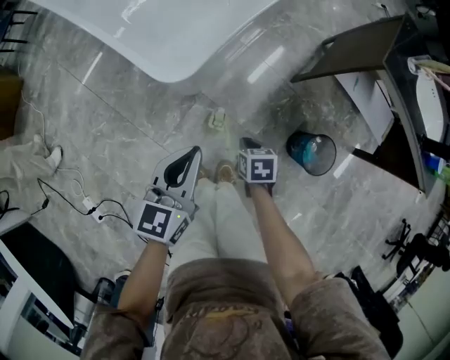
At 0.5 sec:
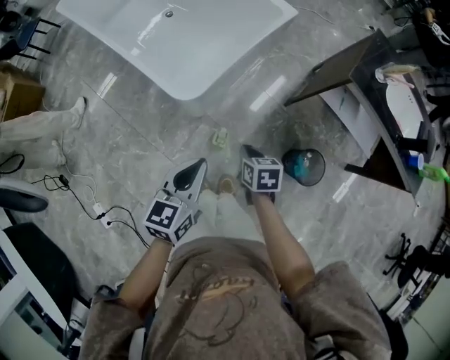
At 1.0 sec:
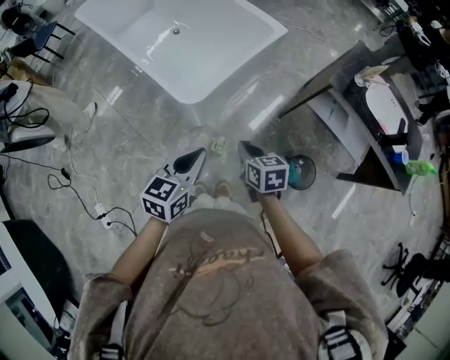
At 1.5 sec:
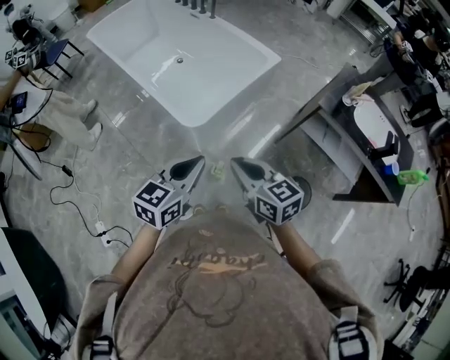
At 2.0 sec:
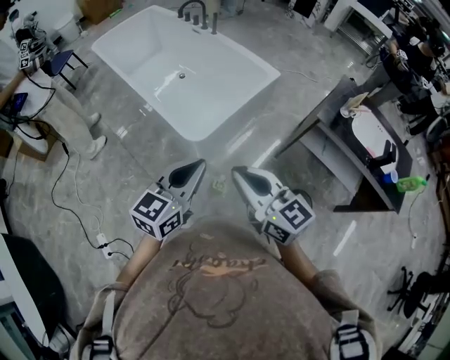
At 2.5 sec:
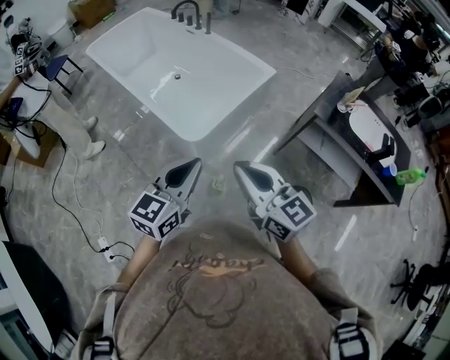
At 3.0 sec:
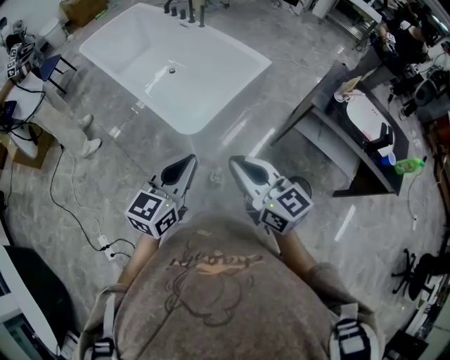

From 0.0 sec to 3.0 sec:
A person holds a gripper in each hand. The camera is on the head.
From 0.0 sec to 1.5 sec: The left gripper heads upward, covering roughly 25 cm; the right gripper is displaced upward by about 40 cm, and tilts its fingers roughly 50 degrees upward.
From 1.5 sec to 3.0 sec: The left gripper moves some 5 cm. Meanwhile the right gripper heads upward, covering about 10 cm.

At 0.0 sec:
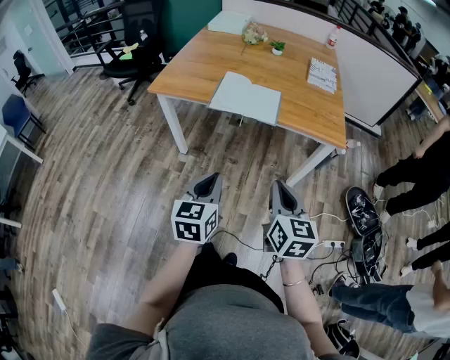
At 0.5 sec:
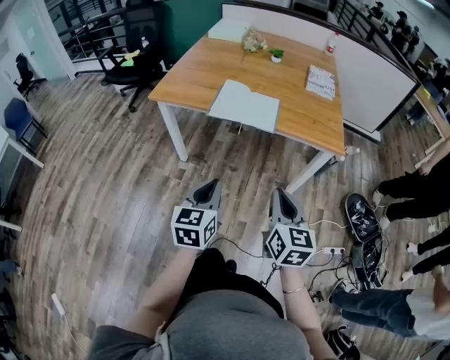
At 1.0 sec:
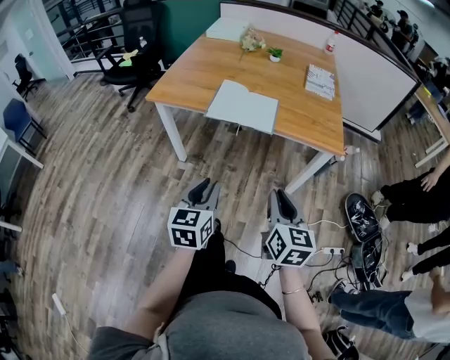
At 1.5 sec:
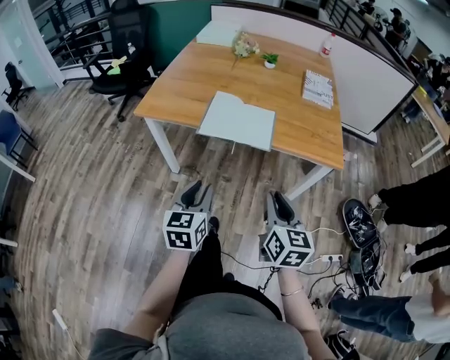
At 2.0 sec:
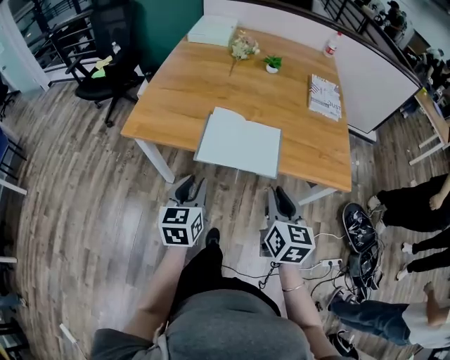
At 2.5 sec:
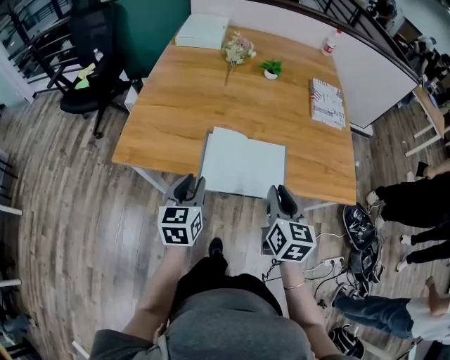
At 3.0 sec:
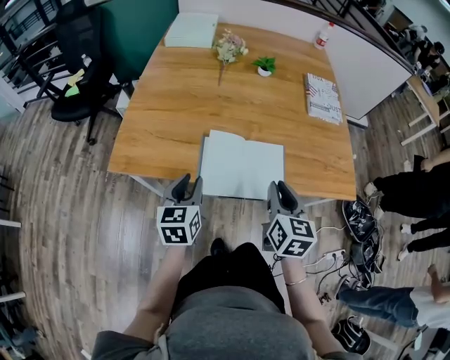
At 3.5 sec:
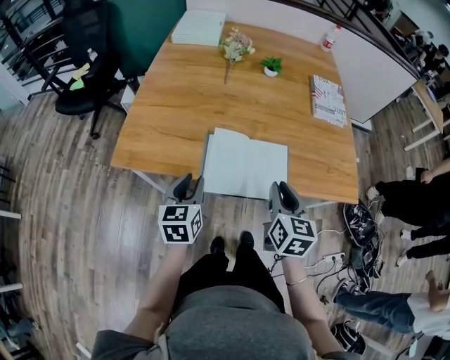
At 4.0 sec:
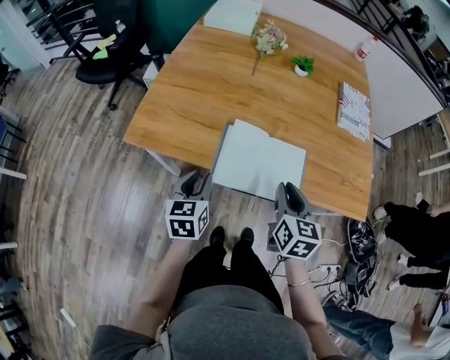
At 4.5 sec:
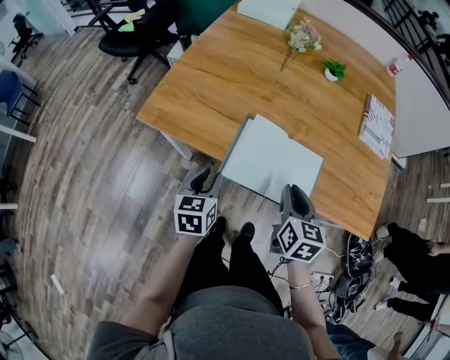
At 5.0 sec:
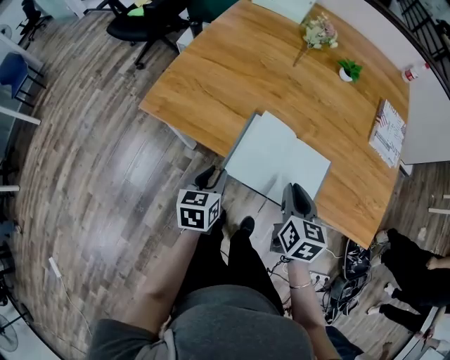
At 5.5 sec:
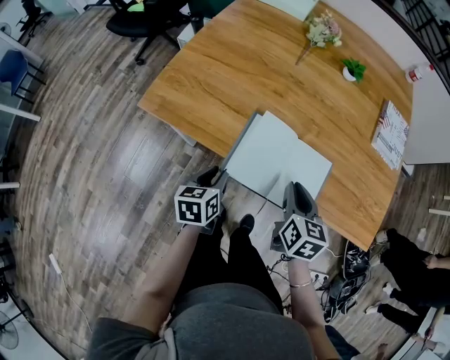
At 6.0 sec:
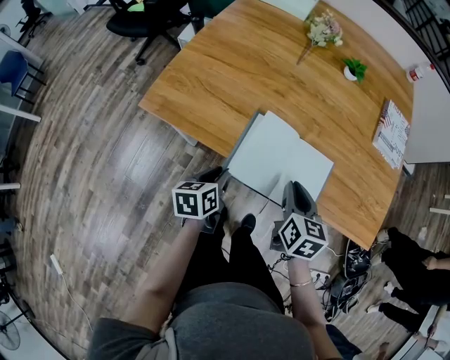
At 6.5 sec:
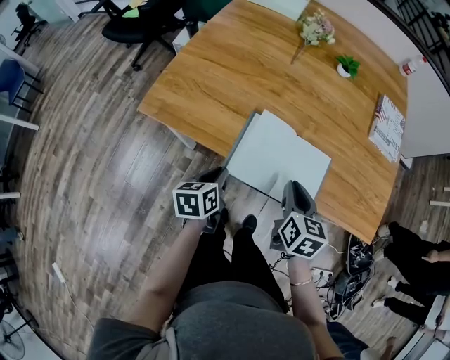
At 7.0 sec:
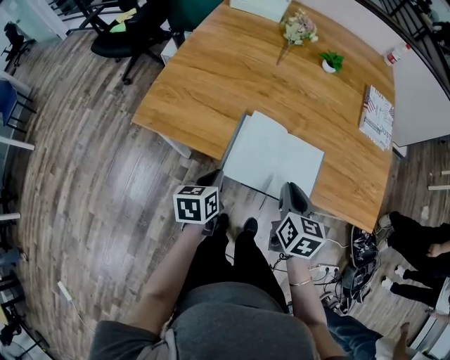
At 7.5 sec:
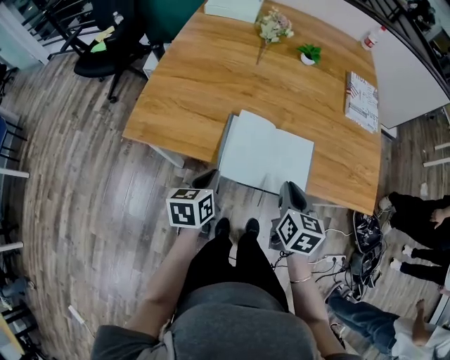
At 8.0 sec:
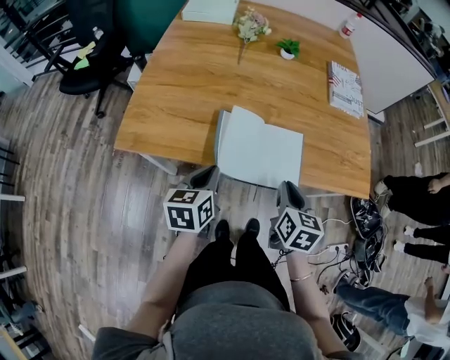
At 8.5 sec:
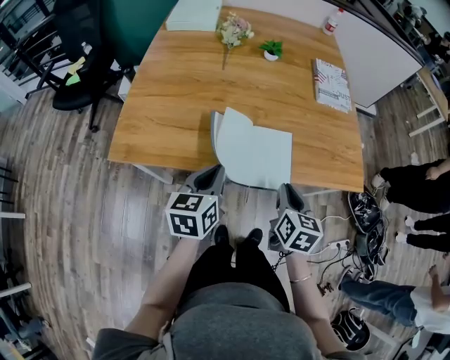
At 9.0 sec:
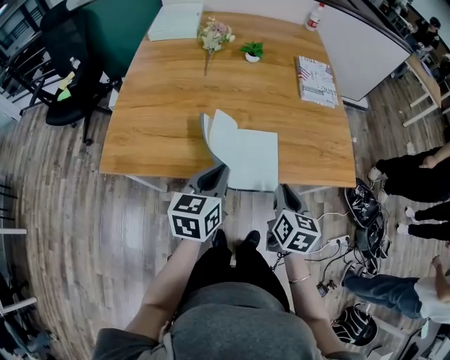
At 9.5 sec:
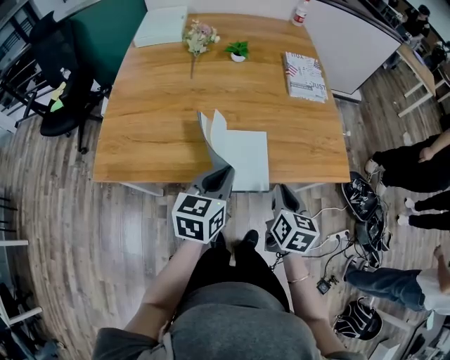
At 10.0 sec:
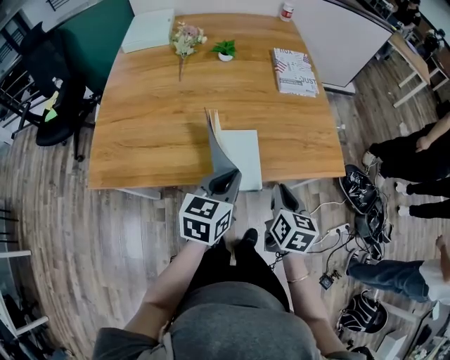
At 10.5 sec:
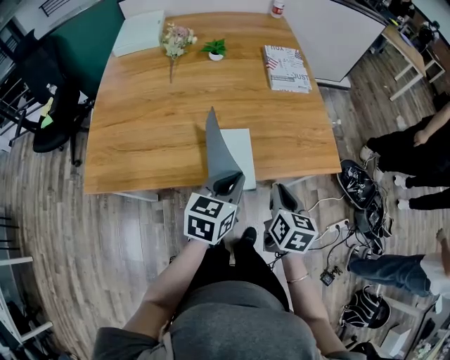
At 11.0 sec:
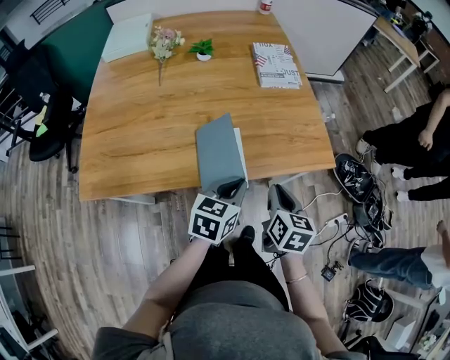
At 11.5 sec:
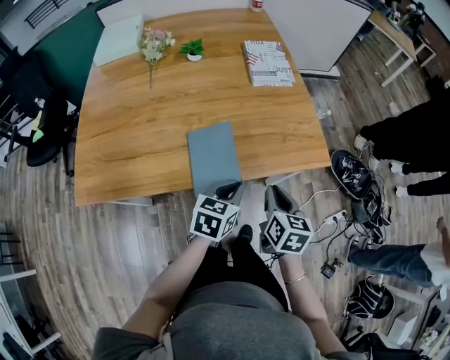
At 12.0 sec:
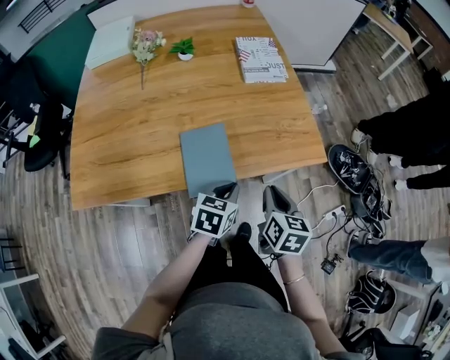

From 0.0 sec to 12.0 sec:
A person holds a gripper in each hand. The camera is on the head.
From 0.0 sec to 2.0 sec: Both grippers travel together forward, some 25 cm.
From 2.0 sec to 4.0 sec: The right gripper is displaced forward by some 15 cm, while the left gripper moves forward, to the left and downward, some 15 cm.
From 4.0 sec to 6.0 sec: The right gripper moves downward, some 5 cm, while the left gripper is displaced downward by some 10 cm, and swivels approximately 30 degrees.
From 6.0 sec to 8.0 sec: The left gripper goes approximately 10 cm upward, and turns by about 20 degrees; the right gripper shifts about 5 cm backward.
From 8.0 sec to 10.0 sec: The left gripper is displaced to the right by about 20 cm, and rotates roughly 30 degrees; the right gripper goes about 10 cm to the right.
From 10.0 sec to 12.0 sec: The right gripper is displaced to the right by roughly 5 cm, while the left gripper heads downward and to the right, covering approximately 15 cm, and swivels approximately 20 degrees.

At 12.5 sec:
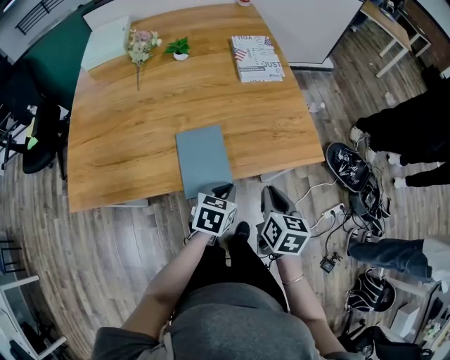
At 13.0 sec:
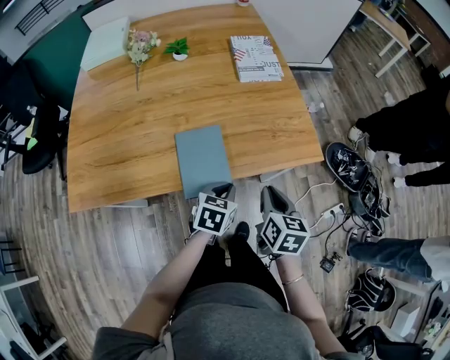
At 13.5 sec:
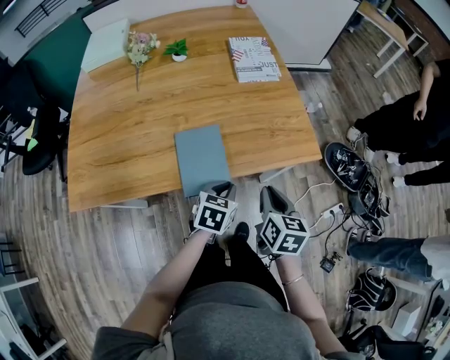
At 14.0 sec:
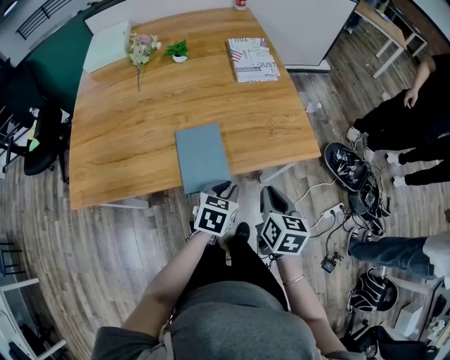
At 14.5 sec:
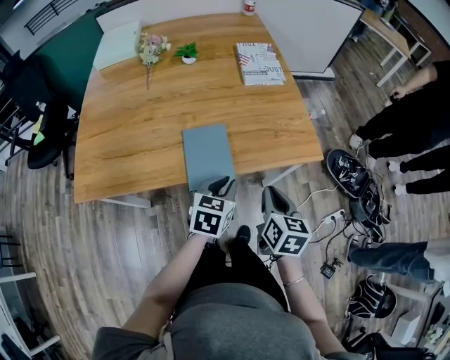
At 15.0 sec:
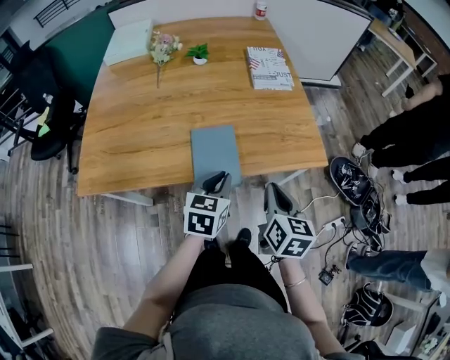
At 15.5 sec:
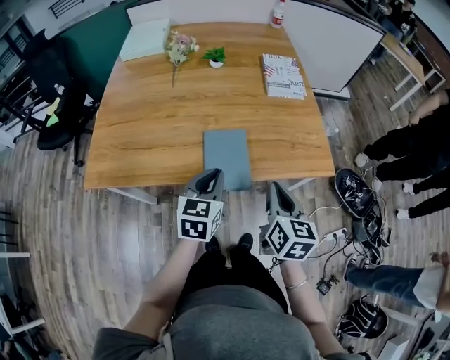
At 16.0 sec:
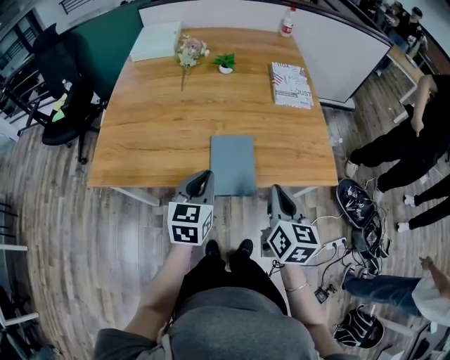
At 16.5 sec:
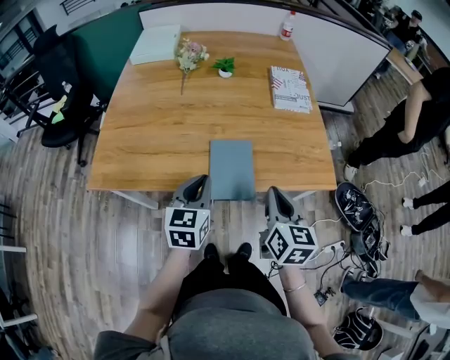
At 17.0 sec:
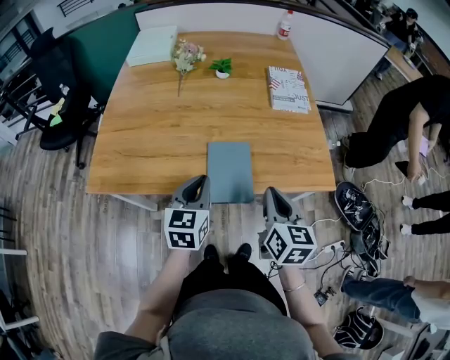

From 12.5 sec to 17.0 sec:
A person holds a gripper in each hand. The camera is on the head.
From 12.5 sec to 14.5 sec: The left gripper is displaced upward by roughly 5 cm.
From 14.5 sec to 17.0 sec: The right gripper heads upward and to the left, covering approximately 10 cm. Meanwhile the left gripper is displaced to the left and upward by some 15 cm, and changes its angle by approximately 30 degrees.

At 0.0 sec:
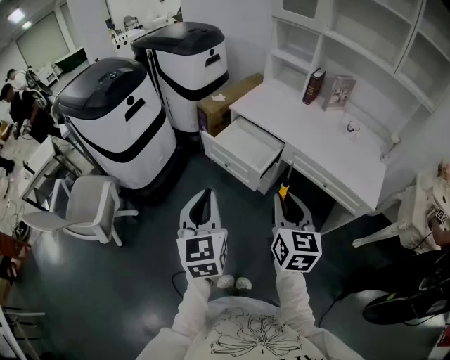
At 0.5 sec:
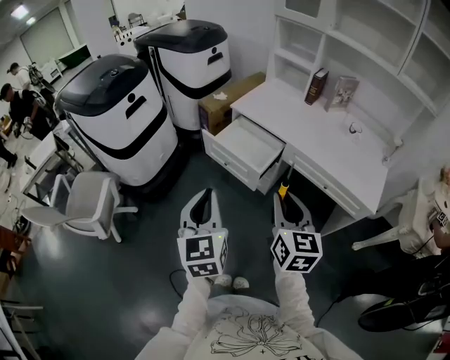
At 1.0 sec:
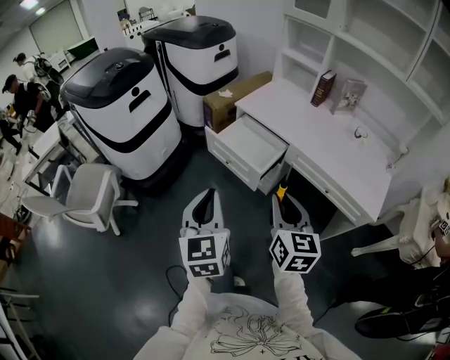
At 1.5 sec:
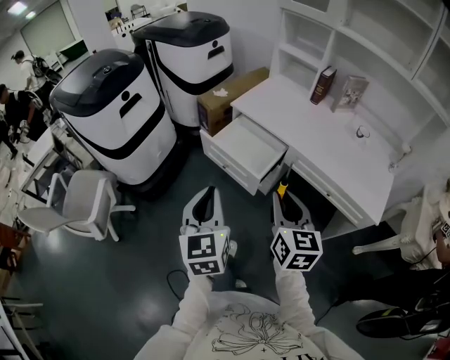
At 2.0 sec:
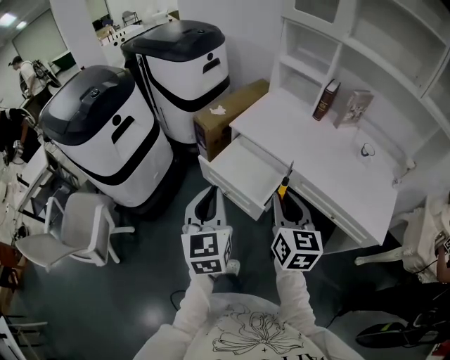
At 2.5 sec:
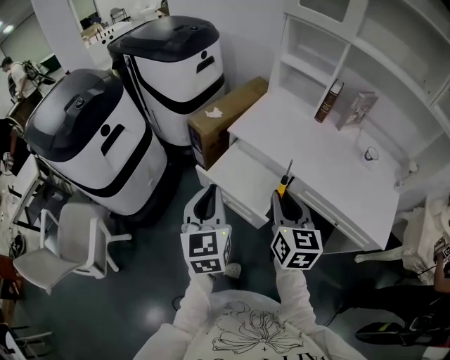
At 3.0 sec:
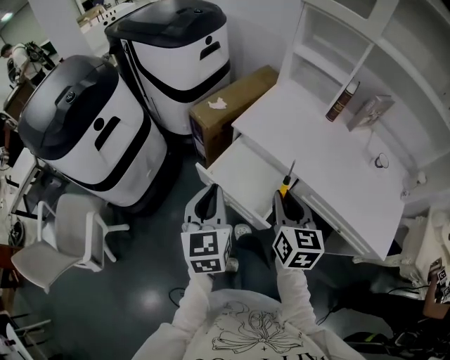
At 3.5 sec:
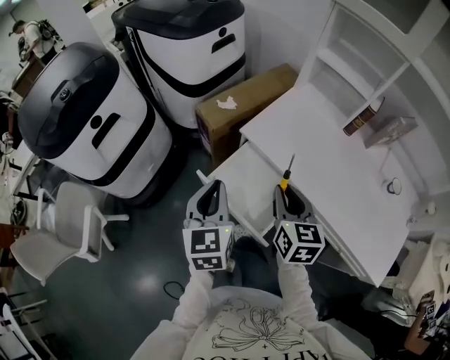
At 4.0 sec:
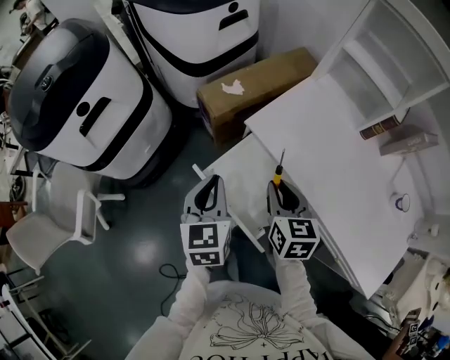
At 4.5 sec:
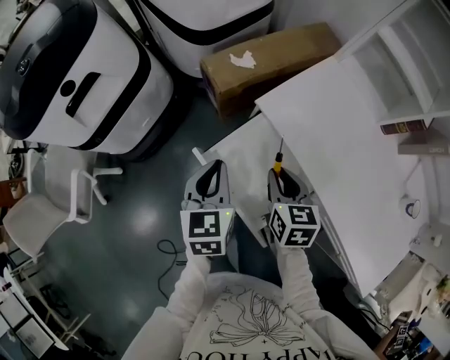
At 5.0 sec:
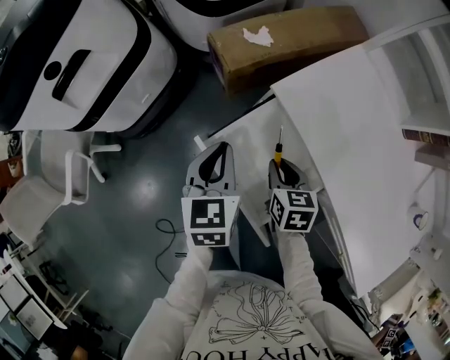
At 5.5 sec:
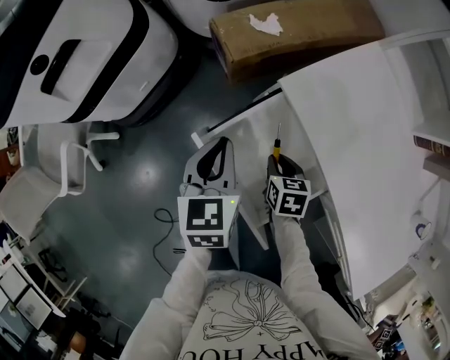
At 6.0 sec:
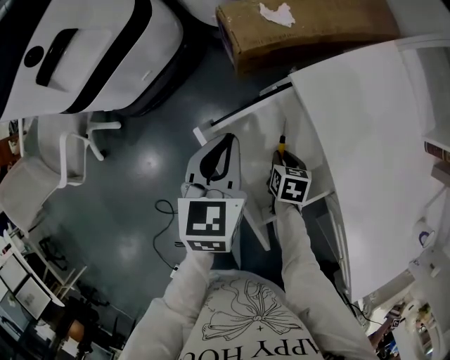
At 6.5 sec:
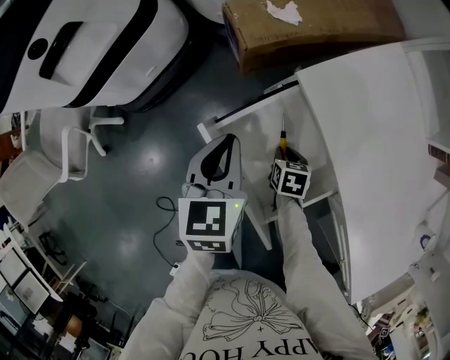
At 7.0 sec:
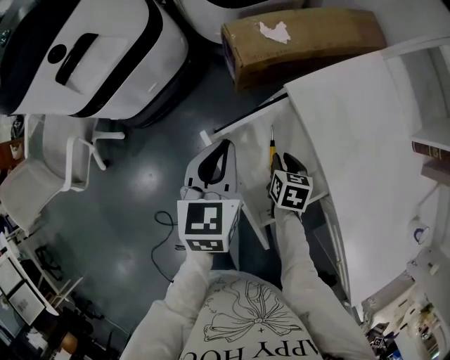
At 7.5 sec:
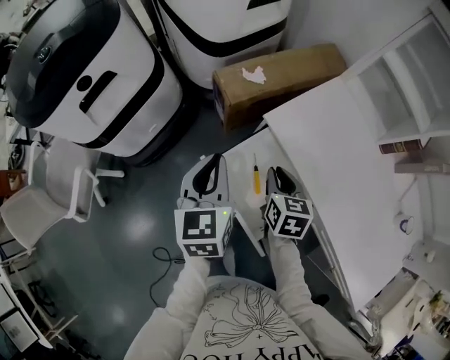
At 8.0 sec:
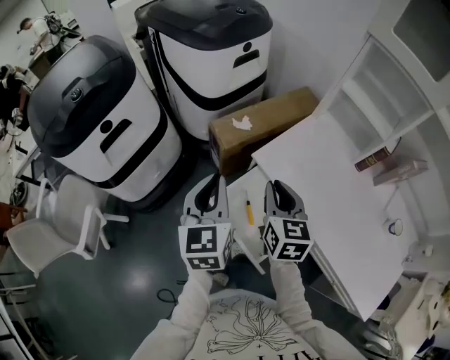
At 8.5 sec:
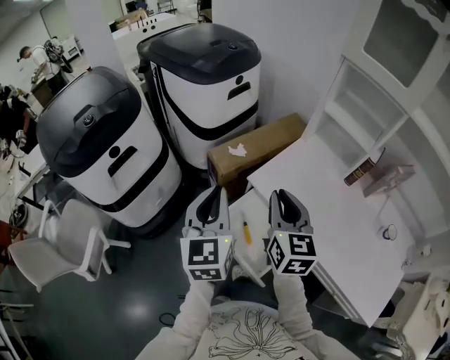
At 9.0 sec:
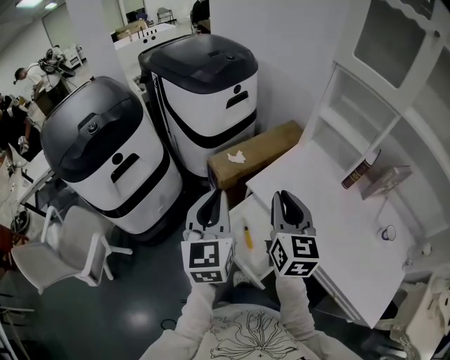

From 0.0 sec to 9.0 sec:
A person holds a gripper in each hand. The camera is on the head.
From 0.0 sec to 2.0 sec: Both grippers travel together forward, about 20 cm.
From 2.0 sec to 4.5 sec: The grippers both shift forward and downward by some 40 cm. The right gripper turns by approximately 30 degrees. Meanwhile the left gripper swivels roughly 30 degrees.
From 4.5 sec to 7.0 sec: The right gripper heads downward, covering roughly 20 cm.
From 7.0 sec to 9.0 sec: The right gripper is displaced upward by approximately 50 cm, and points its fingers roughly 50 degrees further upward, while the left gripper is displaced upward by roughly 30 cm, and tips its fingers upward by about 30 degrees.
